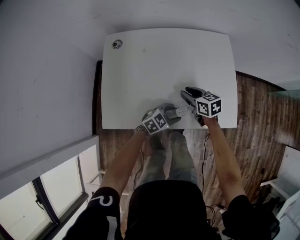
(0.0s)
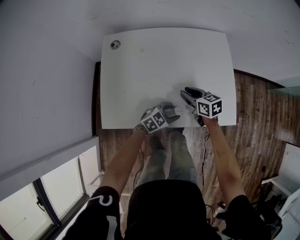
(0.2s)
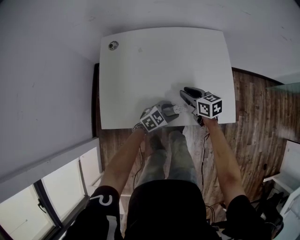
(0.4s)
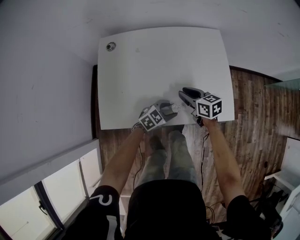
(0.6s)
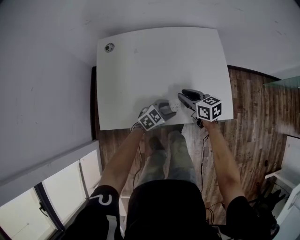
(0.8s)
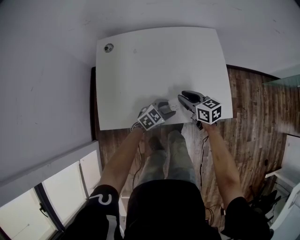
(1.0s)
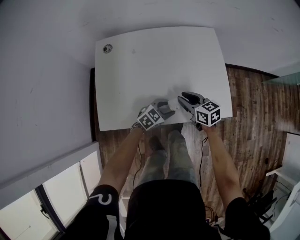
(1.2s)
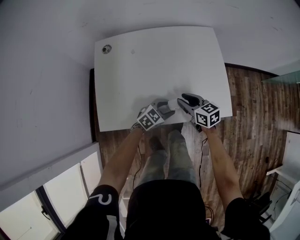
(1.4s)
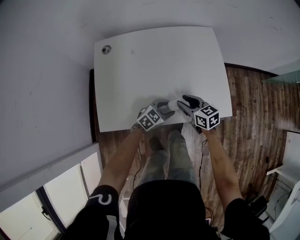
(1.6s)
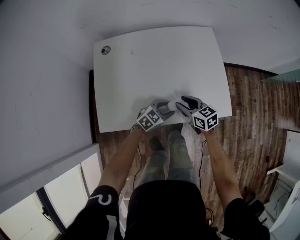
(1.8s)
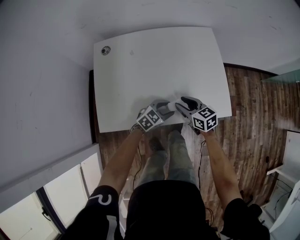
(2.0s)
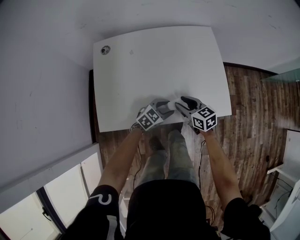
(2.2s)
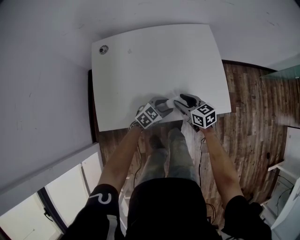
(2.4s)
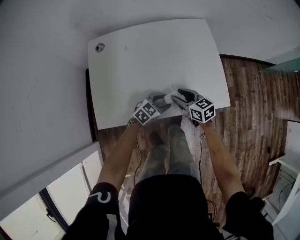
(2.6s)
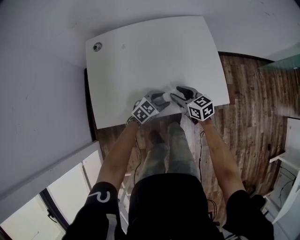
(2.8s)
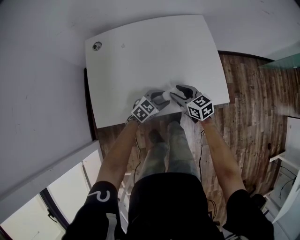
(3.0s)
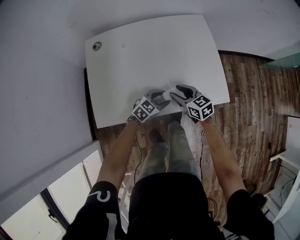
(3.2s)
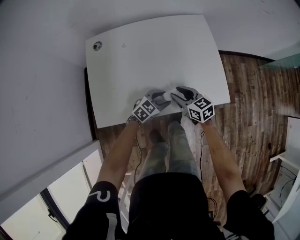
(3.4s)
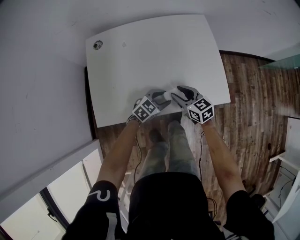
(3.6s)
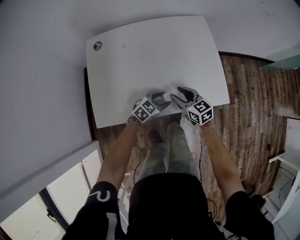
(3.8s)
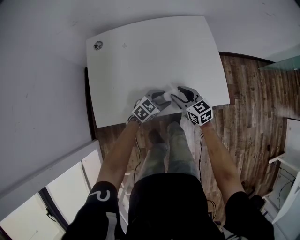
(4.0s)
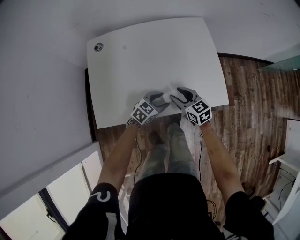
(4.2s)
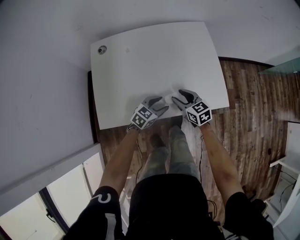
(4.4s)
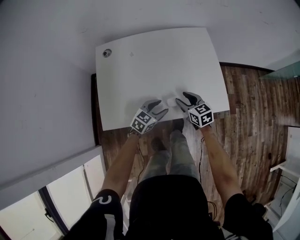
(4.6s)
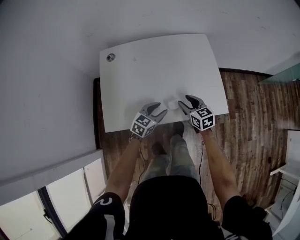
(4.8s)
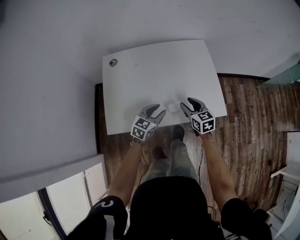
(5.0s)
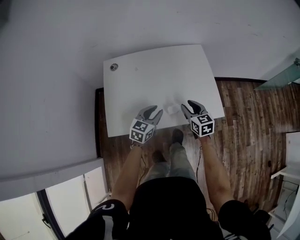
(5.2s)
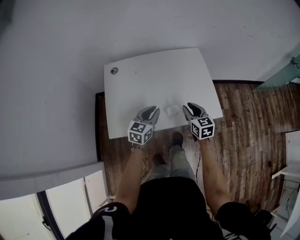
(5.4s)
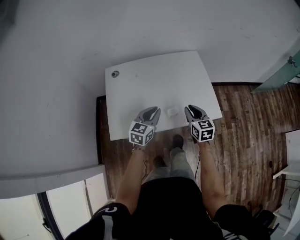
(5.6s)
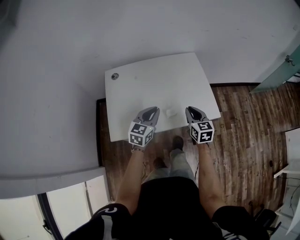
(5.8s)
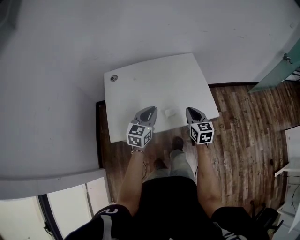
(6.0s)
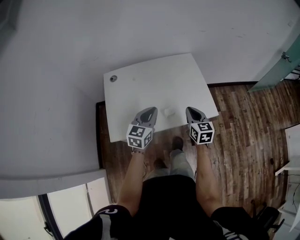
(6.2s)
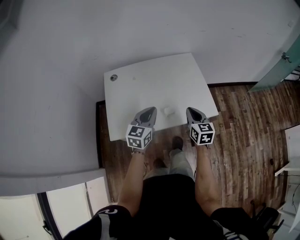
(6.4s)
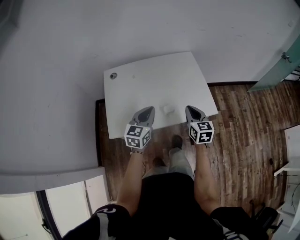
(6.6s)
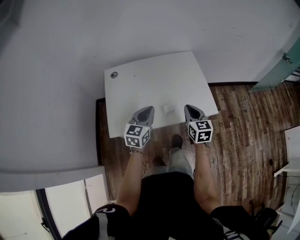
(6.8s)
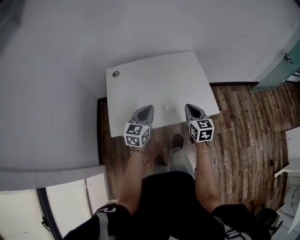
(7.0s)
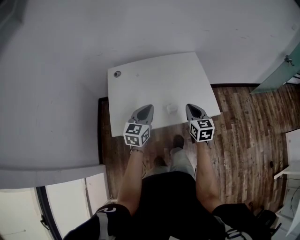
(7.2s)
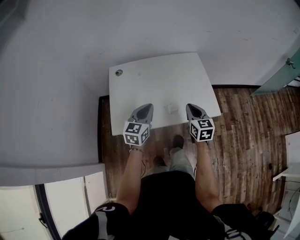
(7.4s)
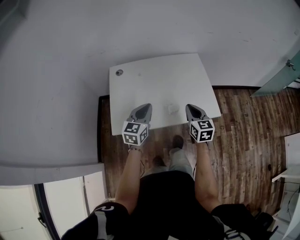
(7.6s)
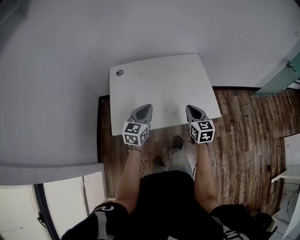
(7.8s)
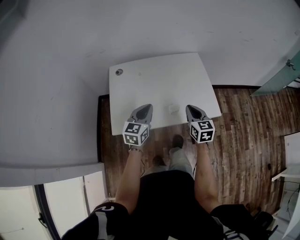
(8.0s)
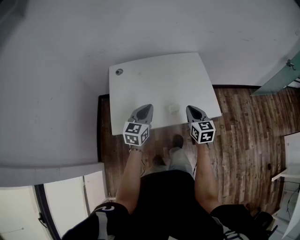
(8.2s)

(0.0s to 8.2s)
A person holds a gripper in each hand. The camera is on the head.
0.0s - 1.6s: The right gripper heads backward, covering some 5 cm.
1.6s - 3.2s: There are only small adjustments of the grippers.
3.2s - 5.0s: The right gripper travels upward by about 5 cm. Meanwhile the left gripper shifts some 15 cm upward and to the left, and turns by roughly 20 degrees.
5.0s - 6.6s: The right gripper heads upward and backward, covering about 15 cm, and closes its fingers; the left gripper heads upward, covering about 15 cm, and closes.
6.6s - 8.2s: The grippers stay close to where they were, moving slightly.

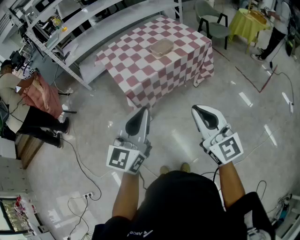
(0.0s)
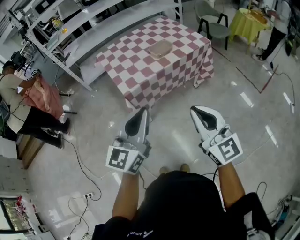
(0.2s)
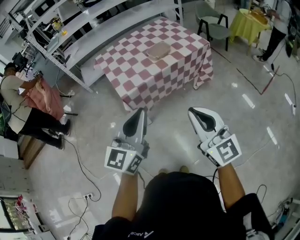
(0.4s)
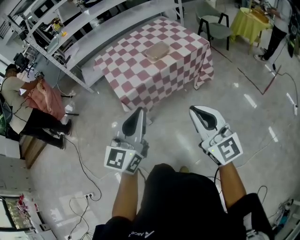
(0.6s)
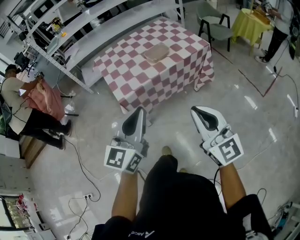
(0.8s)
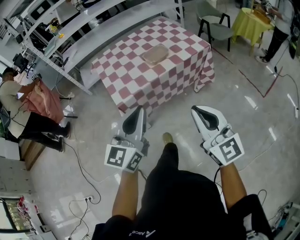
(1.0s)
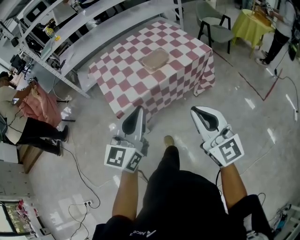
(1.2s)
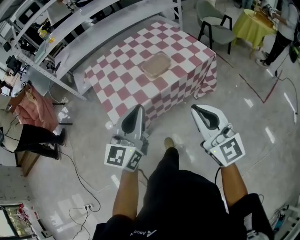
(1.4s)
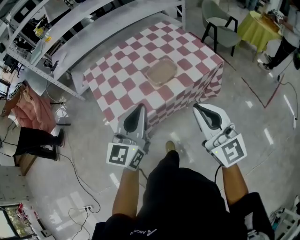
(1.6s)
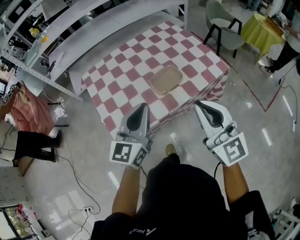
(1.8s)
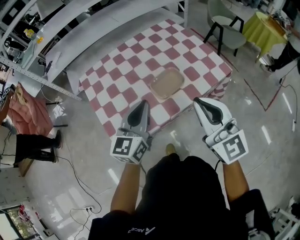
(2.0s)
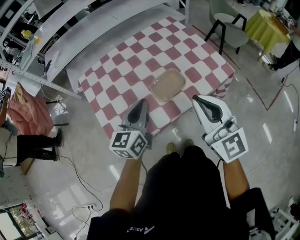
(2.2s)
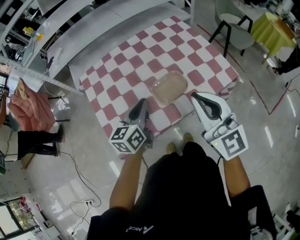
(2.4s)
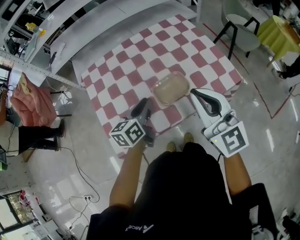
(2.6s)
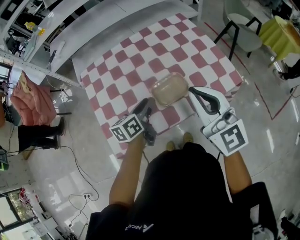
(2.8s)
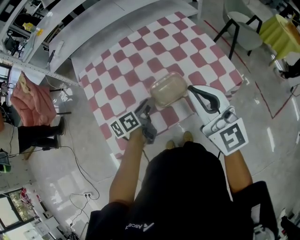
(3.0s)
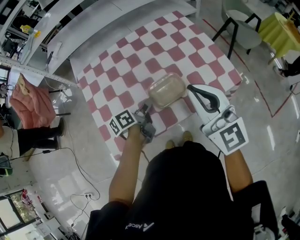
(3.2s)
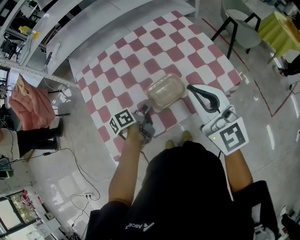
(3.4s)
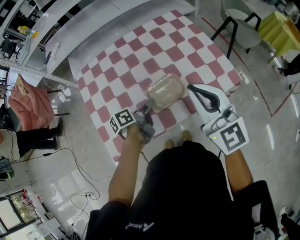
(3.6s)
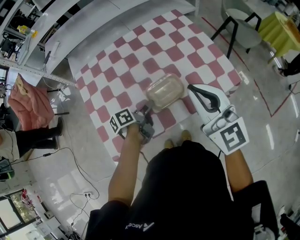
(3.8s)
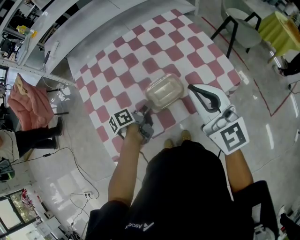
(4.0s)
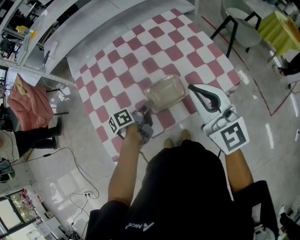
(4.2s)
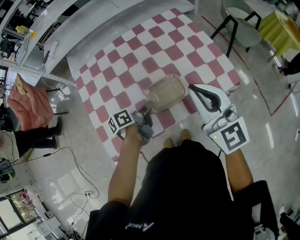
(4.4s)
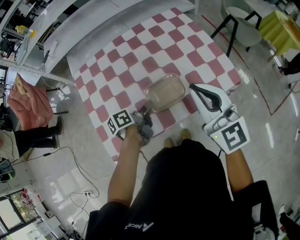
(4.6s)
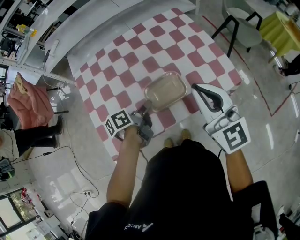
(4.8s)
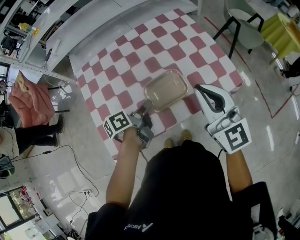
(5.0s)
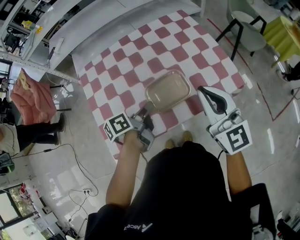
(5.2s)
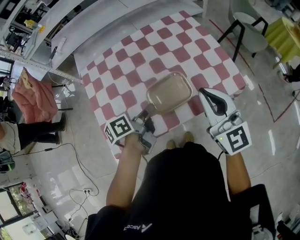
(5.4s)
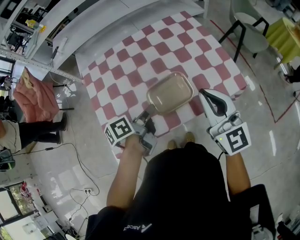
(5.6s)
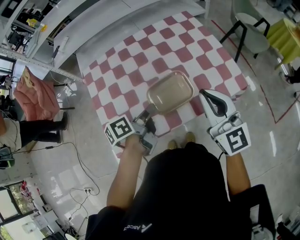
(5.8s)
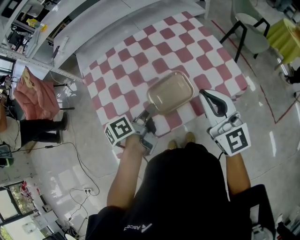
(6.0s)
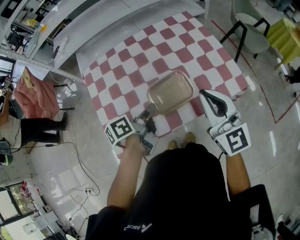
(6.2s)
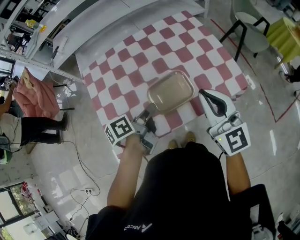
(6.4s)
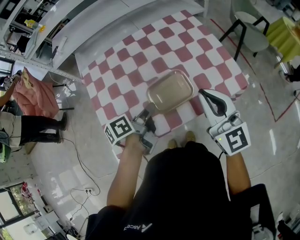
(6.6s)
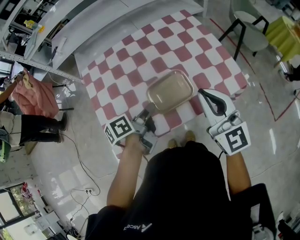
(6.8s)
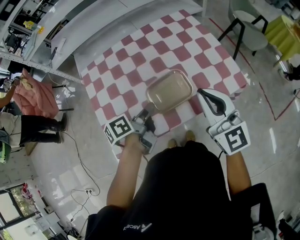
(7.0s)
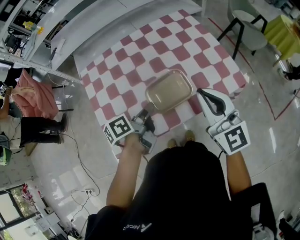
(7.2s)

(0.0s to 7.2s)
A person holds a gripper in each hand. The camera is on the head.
0.0s - 1.4s: Both grippers move forward, about 20 cm.
1.4s - 2.8s: The right gripper goes about 30 cm forward. The left gripper moves forward and downward, some 35 cm, rotates around the line of its fingers by about 40 degrees, counterclockwise from behind, and opens its fingers.
2.8s - 4.4s: The left gripper travels downward by some 10 cm, turns by some 30 degrees, and closes its fingers, while the right gripper ends up approximately 5 cm from where it was.
4.4s - 5.8s: The left gripper moves upward, about 10 cm.
5.8s - 7.2s: Neither gripper changes place.

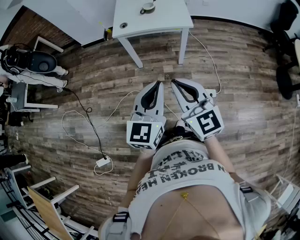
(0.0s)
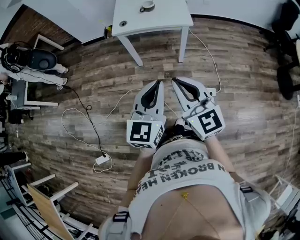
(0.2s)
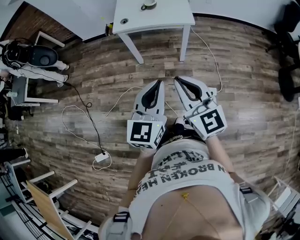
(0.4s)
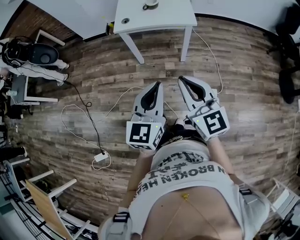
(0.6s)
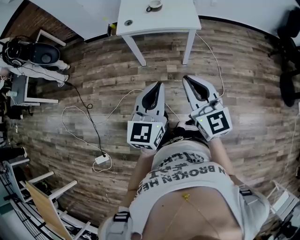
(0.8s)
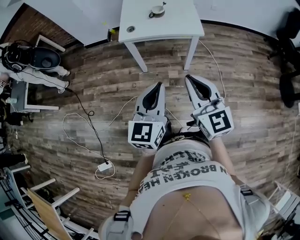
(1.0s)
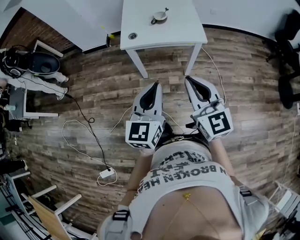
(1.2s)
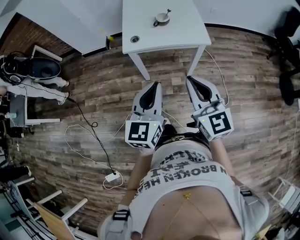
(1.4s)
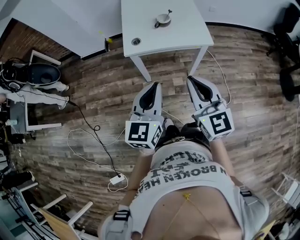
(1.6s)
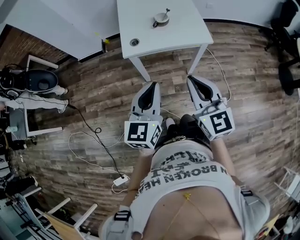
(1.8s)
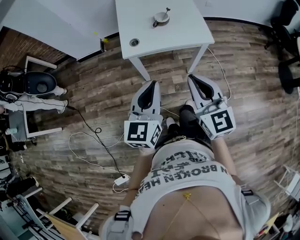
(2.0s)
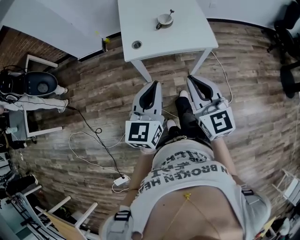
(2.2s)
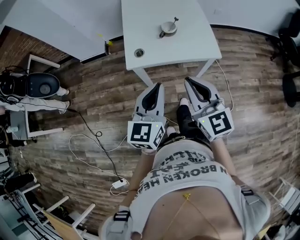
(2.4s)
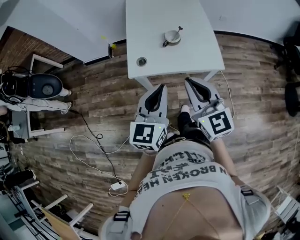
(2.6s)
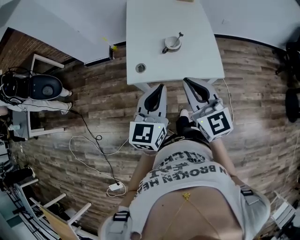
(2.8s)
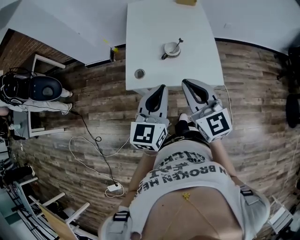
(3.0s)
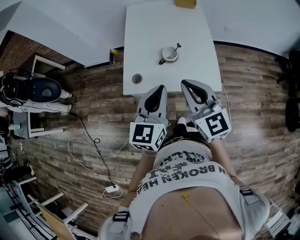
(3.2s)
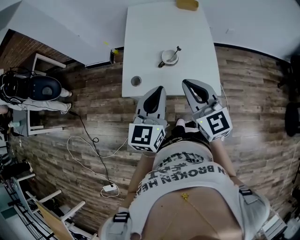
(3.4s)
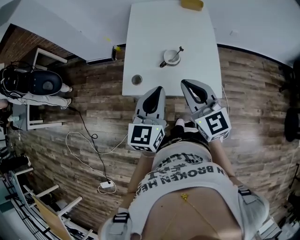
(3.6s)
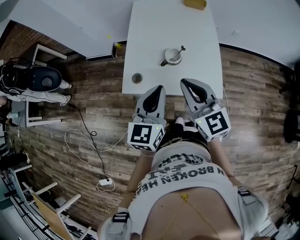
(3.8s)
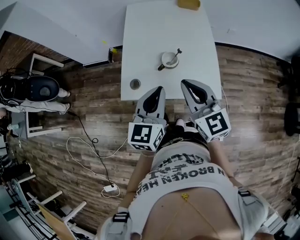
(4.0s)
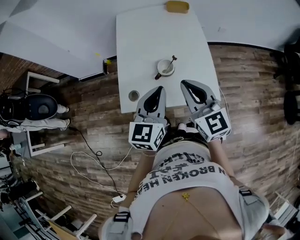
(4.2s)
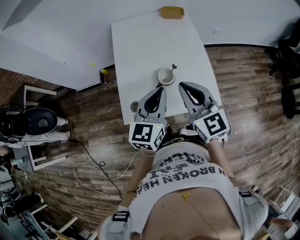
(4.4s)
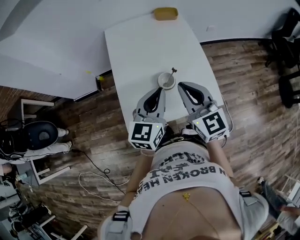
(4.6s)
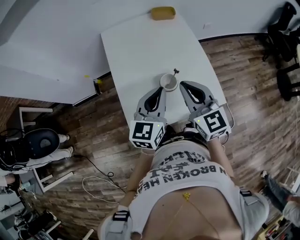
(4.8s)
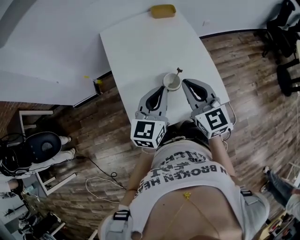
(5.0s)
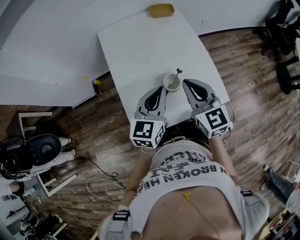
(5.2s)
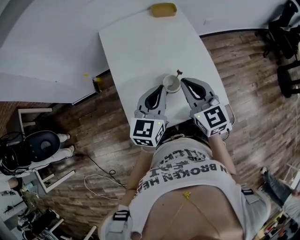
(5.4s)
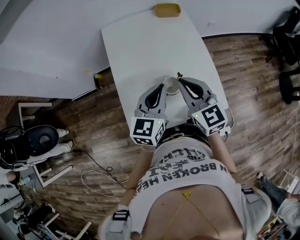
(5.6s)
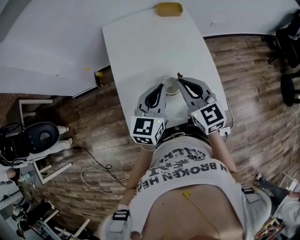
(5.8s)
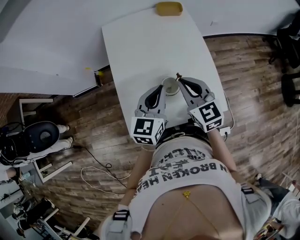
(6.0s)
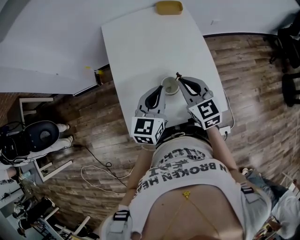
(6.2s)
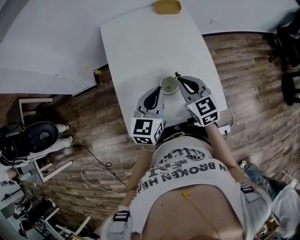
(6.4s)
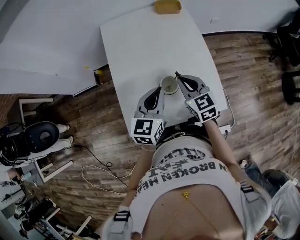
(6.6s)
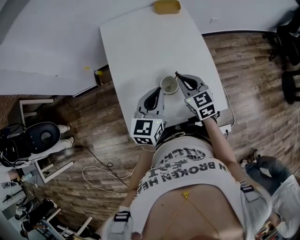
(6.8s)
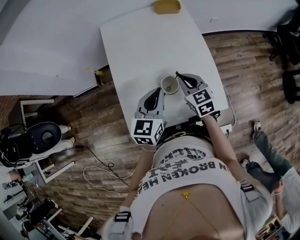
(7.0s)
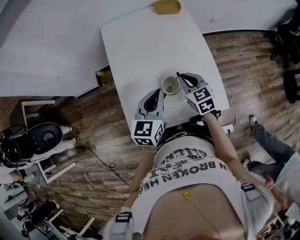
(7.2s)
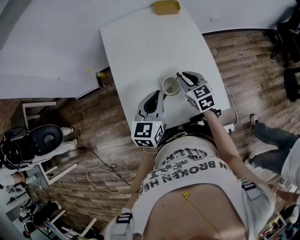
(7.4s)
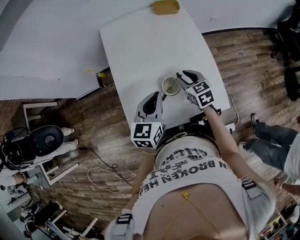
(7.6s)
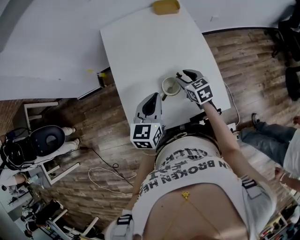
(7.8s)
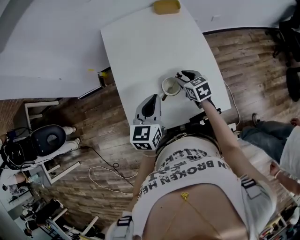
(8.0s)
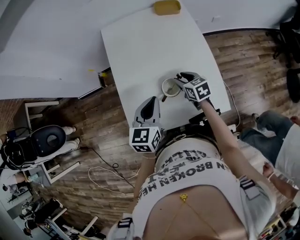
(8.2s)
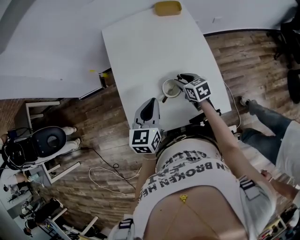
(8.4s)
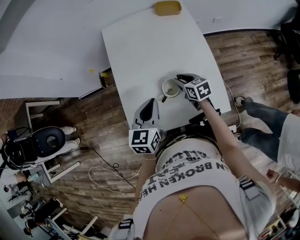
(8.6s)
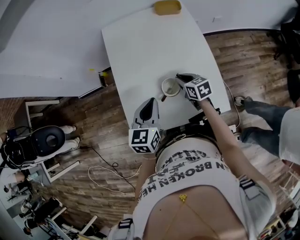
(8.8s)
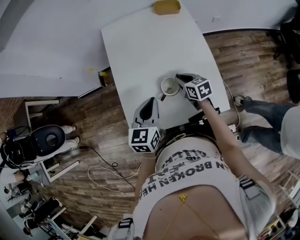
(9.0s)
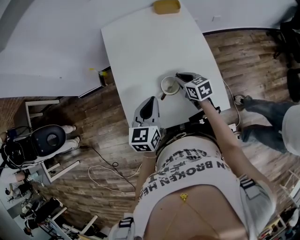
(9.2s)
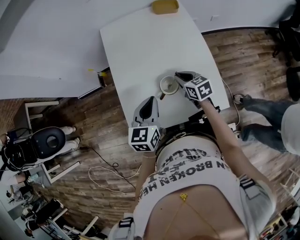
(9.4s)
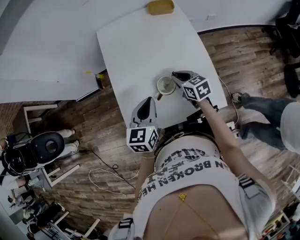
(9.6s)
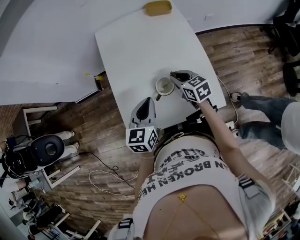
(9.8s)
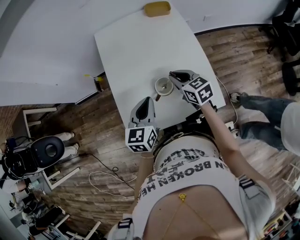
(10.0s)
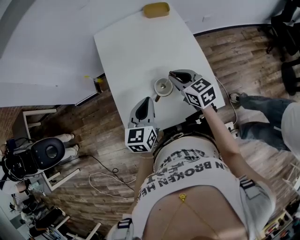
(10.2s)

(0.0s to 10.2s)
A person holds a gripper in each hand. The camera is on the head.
0.0s - 1.4s: The right gripper heads forward, covering about 20 cm; the left gripper moves forward and to the left, about 20 cm.
1.4s - 3.0s: The two grippers go about 30 cm forward.
3.0s - 4.4s: Both grippers move forward, about 15 cm.
4.4s - 5.8s: The right gripper shifts some 15 cm forward and downward. The left gripper travels forward by approximately 10 cm.
5.8s - 7.2s: The right gripper is displaced downward by approximately 15 cm.
7.2s - 8.8s: The right gripper moves downward, approximately 5 cm, swivels approximately 20 degrees, and opens, then closes once more.
8.8s - 10.2s: The right gripper shifts some 10 cm upward.
